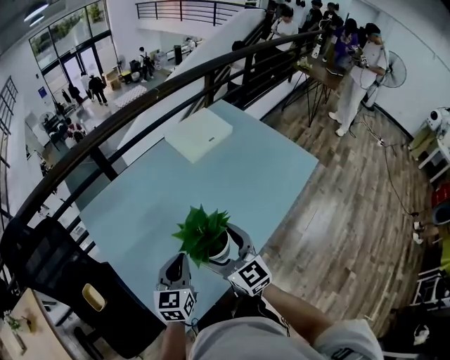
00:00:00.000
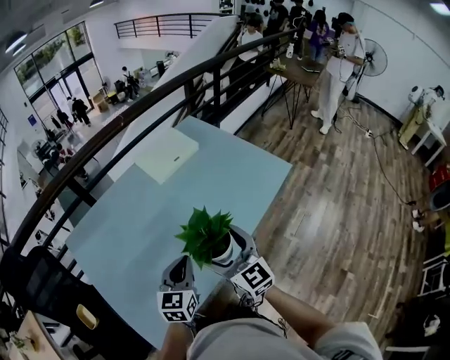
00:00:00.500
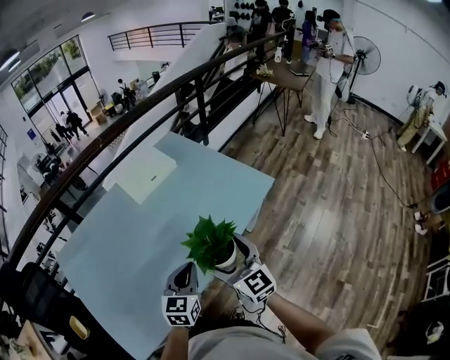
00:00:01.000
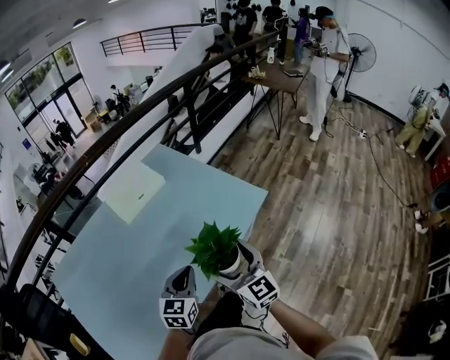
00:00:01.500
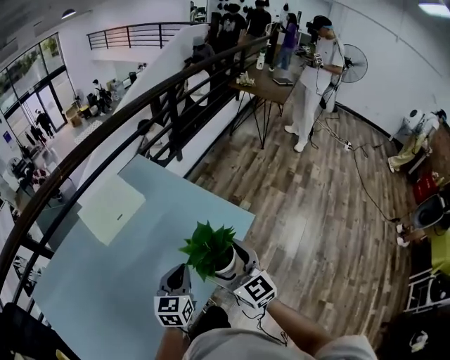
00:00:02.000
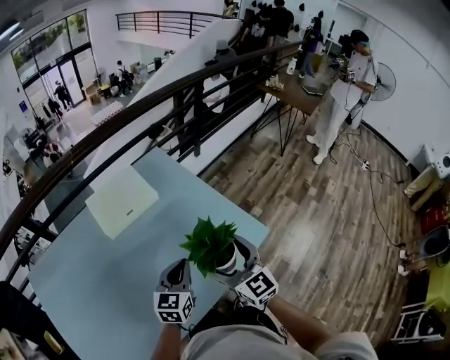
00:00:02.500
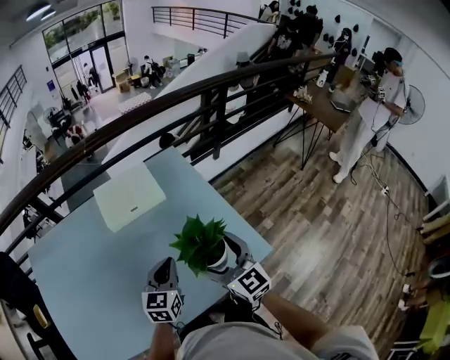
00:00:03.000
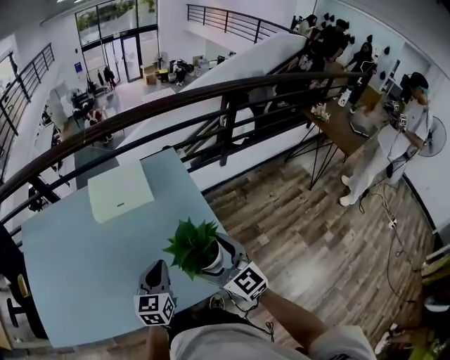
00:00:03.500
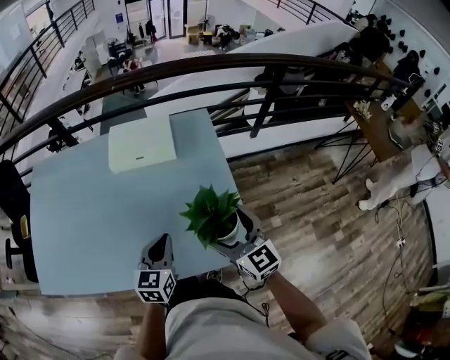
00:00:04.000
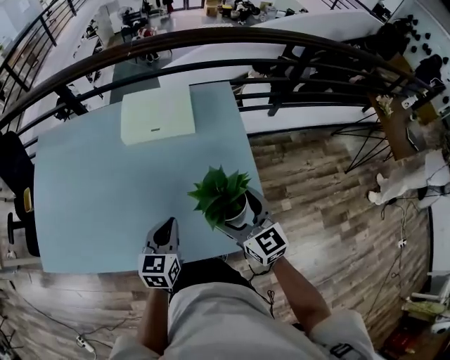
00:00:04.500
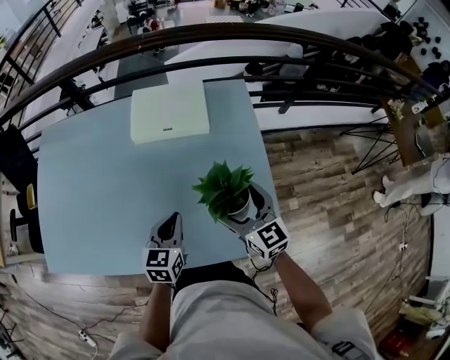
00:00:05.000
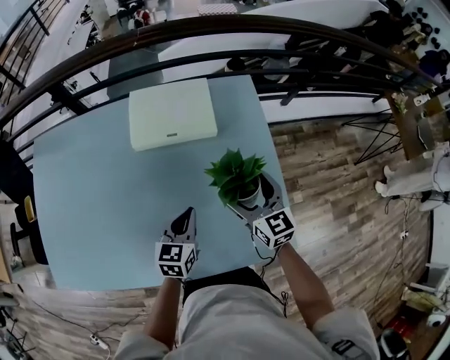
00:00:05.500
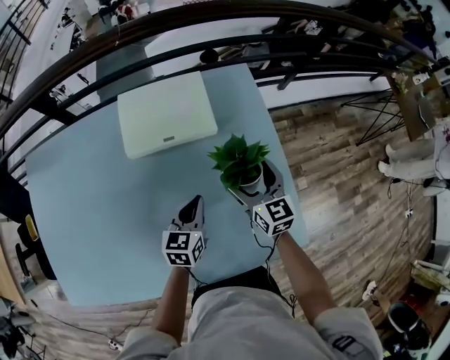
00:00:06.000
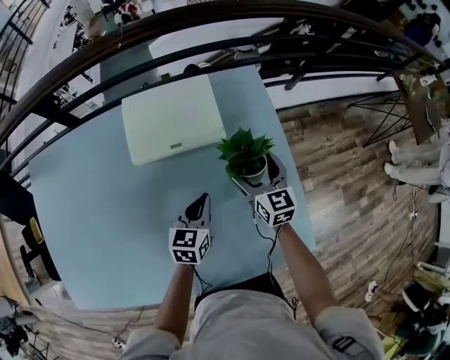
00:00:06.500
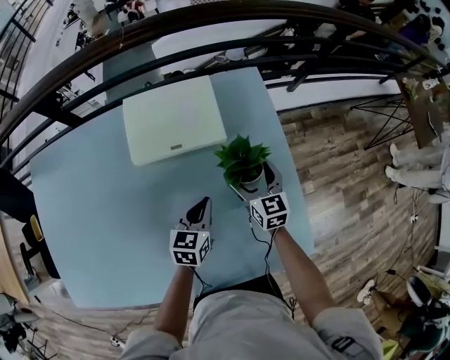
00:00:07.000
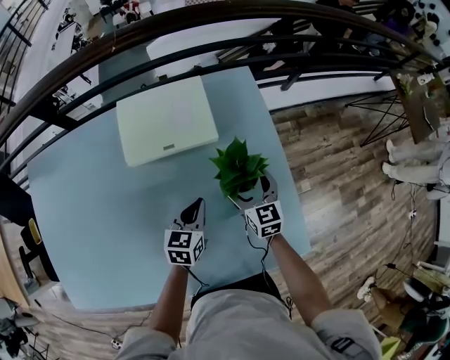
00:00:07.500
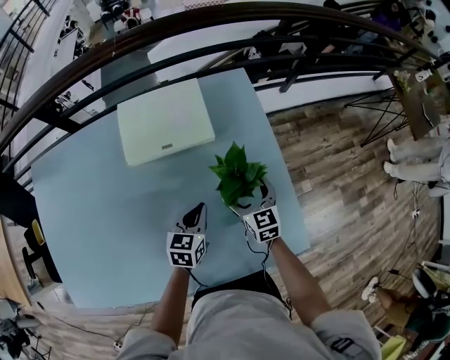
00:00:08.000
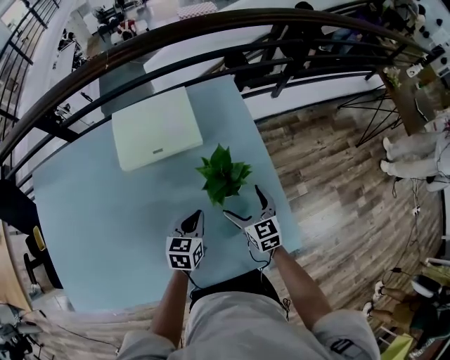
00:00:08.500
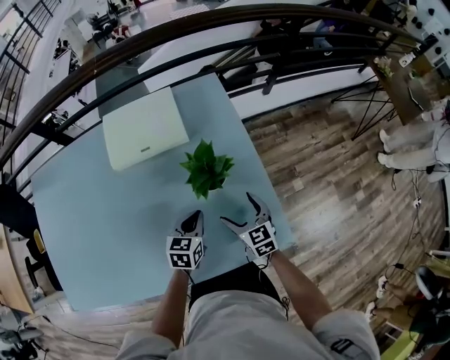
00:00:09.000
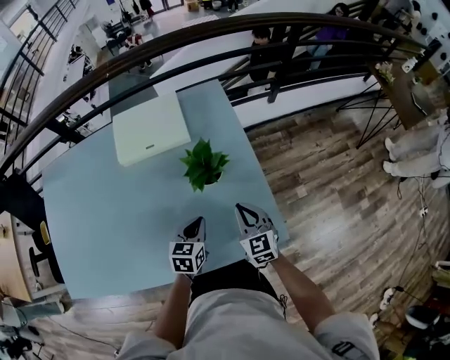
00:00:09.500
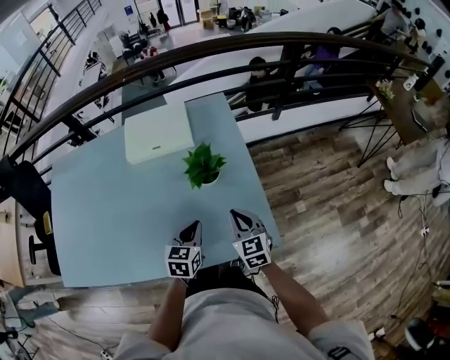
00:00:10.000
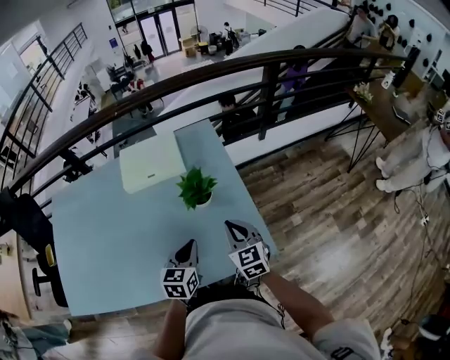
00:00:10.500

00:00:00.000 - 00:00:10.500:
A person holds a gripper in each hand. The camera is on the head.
00:00:00.000 - 00:00:02.000: Both grippers are carried to the right and forward, approximately 50 cm.
00:00:02.000 - 00:00:04.000: The right gripper moves approximately 20 cm, and changes its angle by approximately 40 degrees. Meanwhile the left gripper shifts by about 10 cm, and swivels some 40 degrees.
00:00:04.000 - 00:00:06.500: The two grippers go some 25 cm forward and downward. The right gripper changes its angle by some 20 degrees.
00:00:06.500 - 00:00:08.500: The left gripper goes about 5 cm backward, while the right gripper travels backward and downward by roughly 15 cm.
00:00:08.500 - 00:00:10.500: The two grippers go approximately 15 cm upward, backward and to the right. The right gripper closes up.

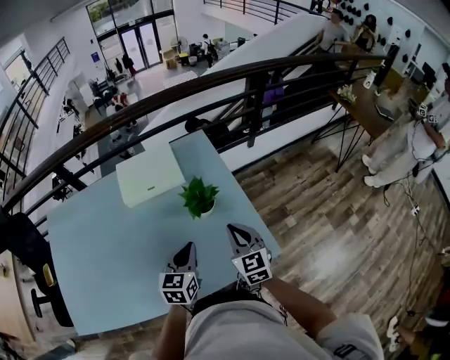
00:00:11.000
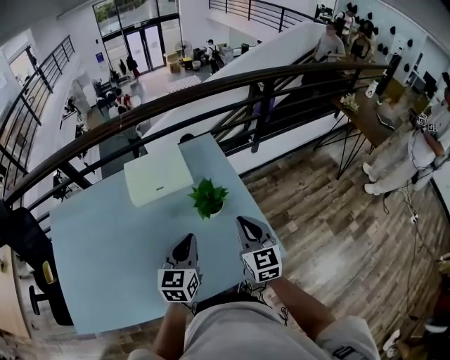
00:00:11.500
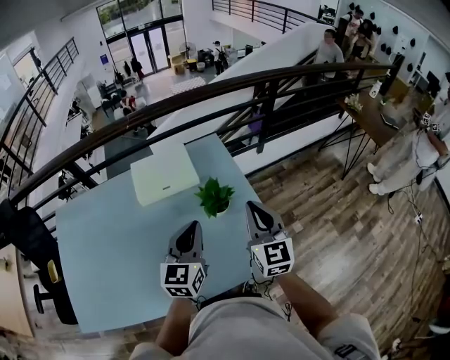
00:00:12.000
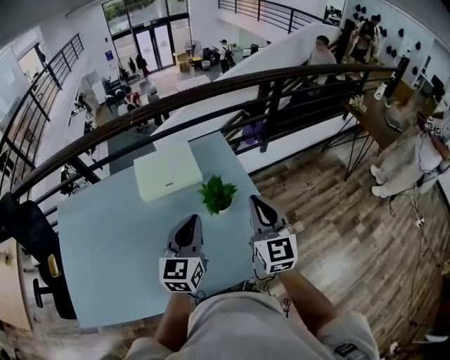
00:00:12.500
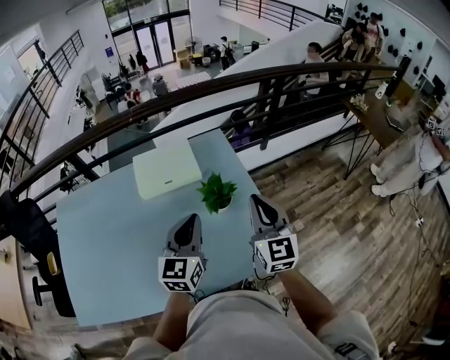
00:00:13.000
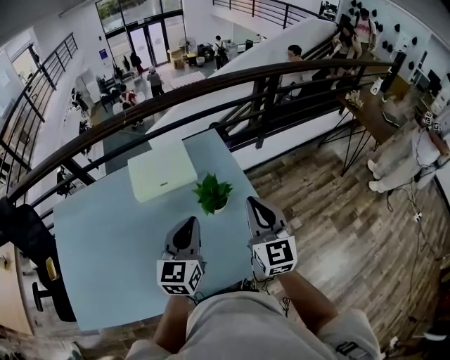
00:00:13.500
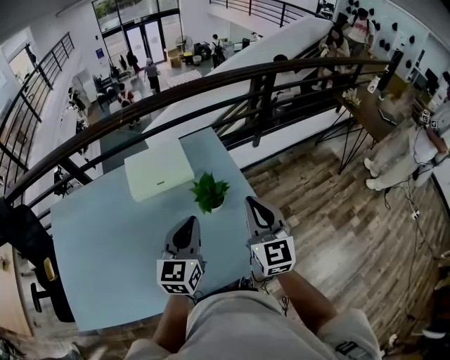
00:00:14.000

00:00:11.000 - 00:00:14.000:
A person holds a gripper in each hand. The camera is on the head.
00:00:11.000 - 00:00:12.500: The two grippers go about 15 cm upward.
00:00:12.500 - 00:00:14.000: There are only small adjustments of the grippers.

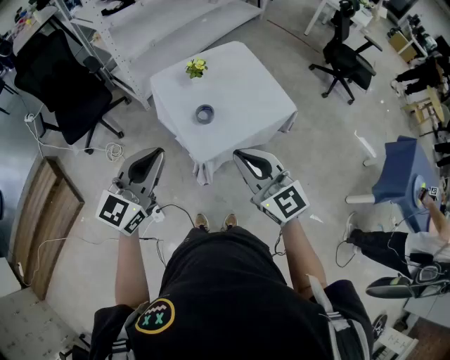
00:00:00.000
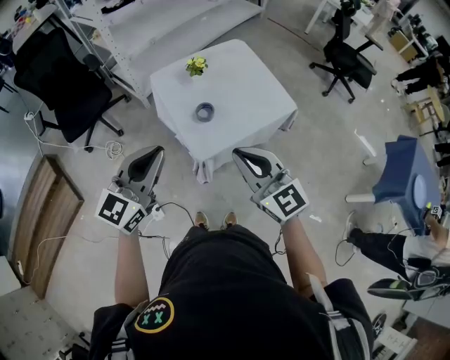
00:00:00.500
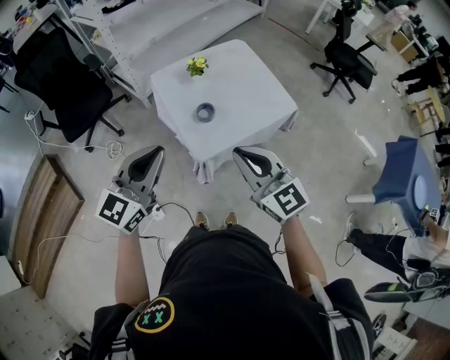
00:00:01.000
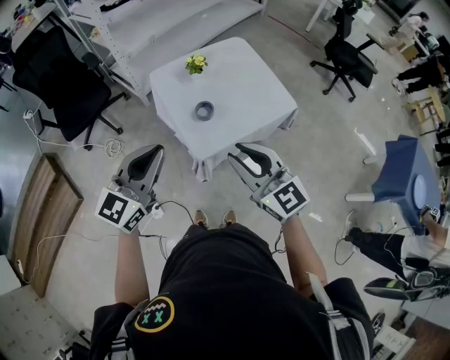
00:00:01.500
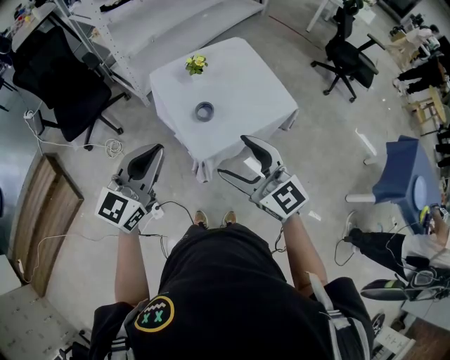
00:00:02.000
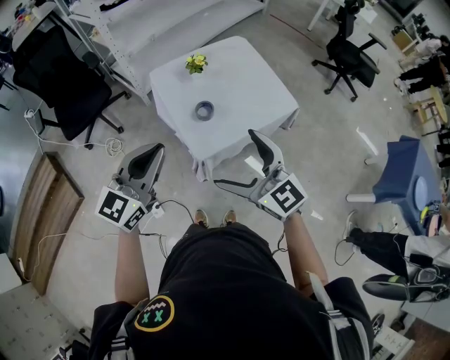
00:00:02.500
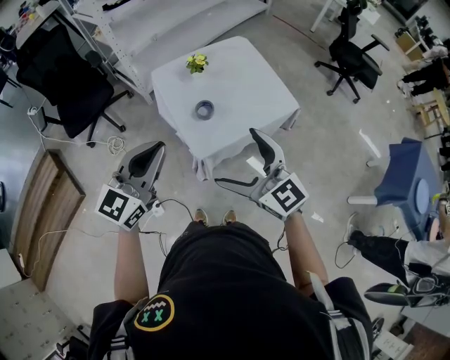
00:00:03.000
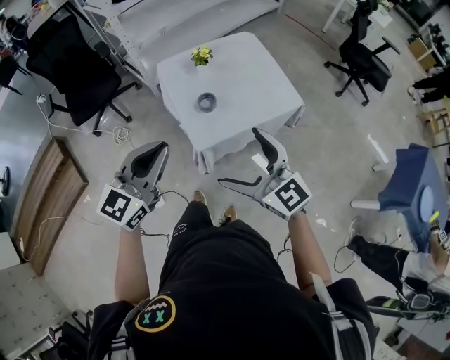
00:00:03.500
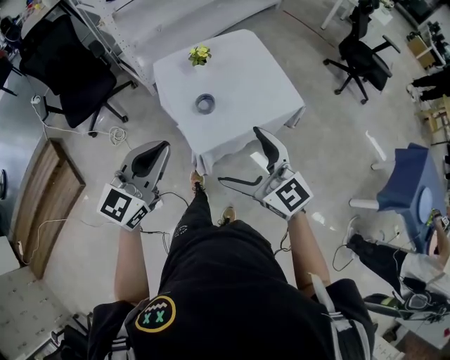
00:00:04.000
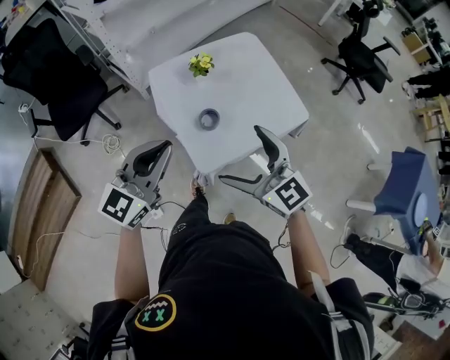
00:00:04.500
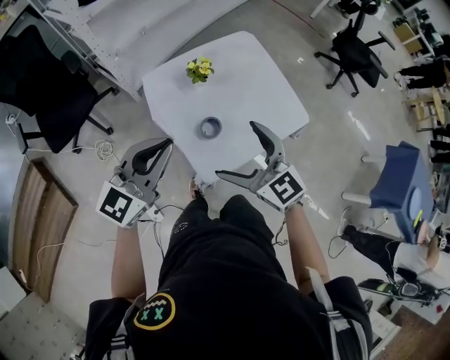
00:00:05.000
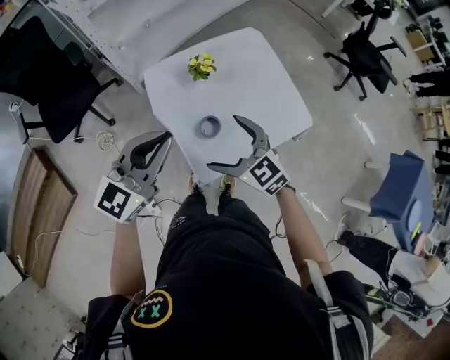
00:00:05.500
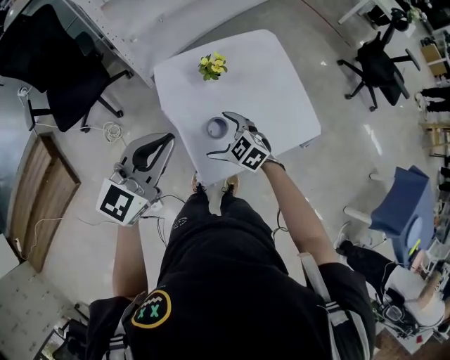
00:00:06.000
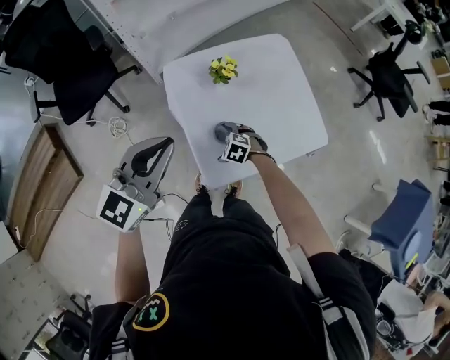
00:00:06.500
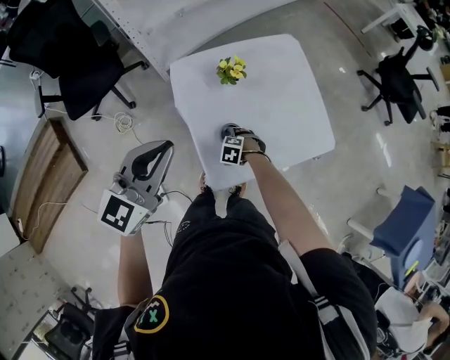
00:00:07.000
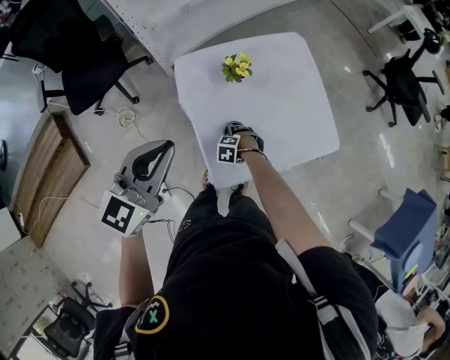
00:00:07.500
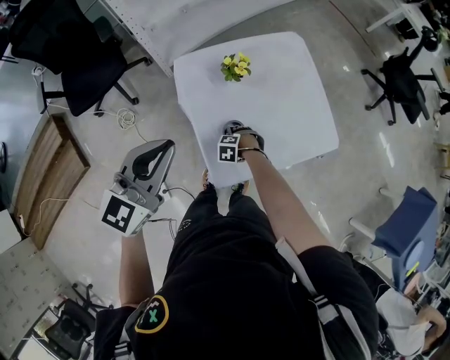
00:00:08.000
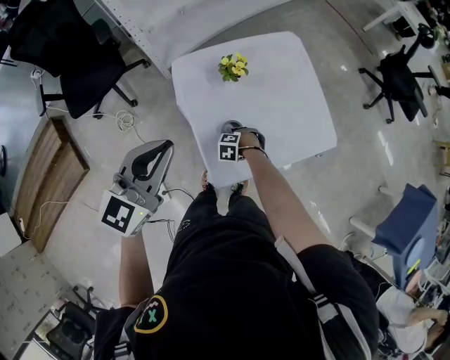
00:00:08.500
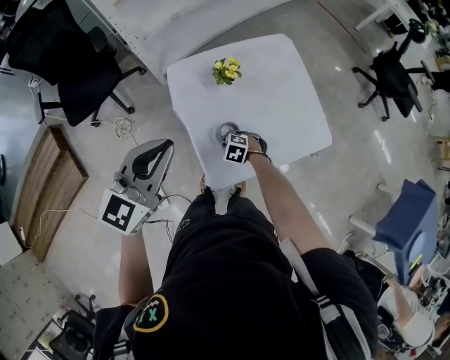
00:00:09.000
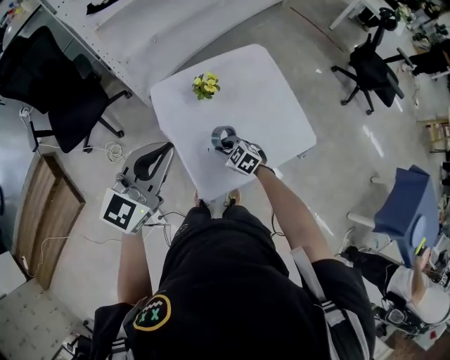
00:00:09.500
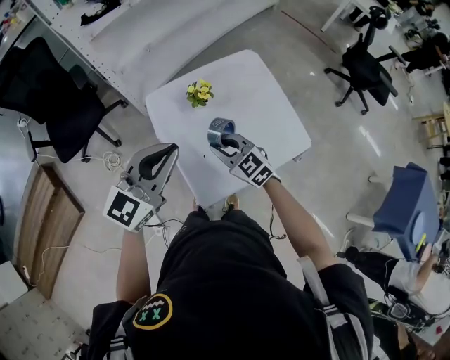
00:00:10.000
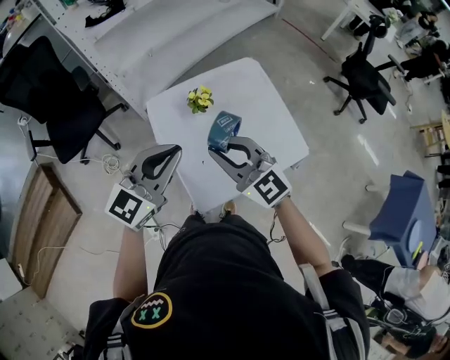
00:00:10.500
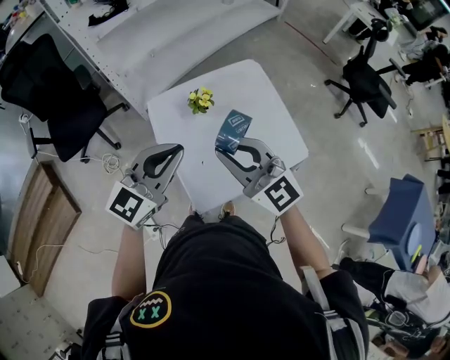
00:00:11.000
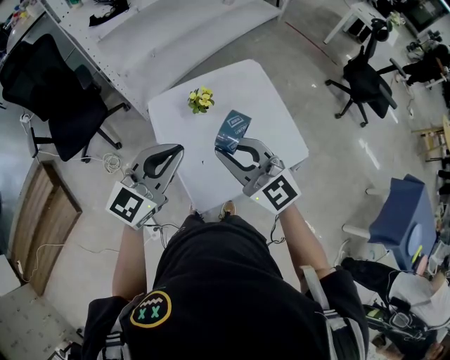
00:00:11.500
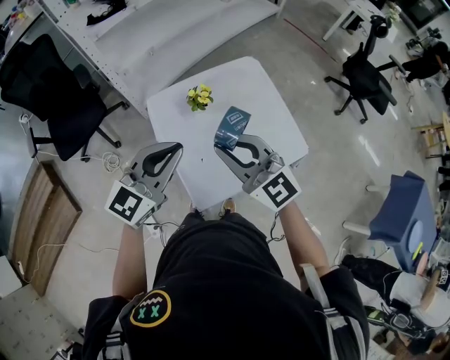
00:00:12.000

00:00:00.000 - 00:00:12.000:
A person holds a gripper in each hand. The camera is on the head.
00:00:00.000 - 00:00:02.000: The right gripper opens.
00:00:02.000 - 00:00:04.000: The right gripper ends up approximately 5 cm from where it was; the left gripper shifts by roughly 5 cm.
00:00:04.000 - 00:00:06.000: The left gripper travels forward by about 25 cm. The right gripper is displaced forward and downward by about 35 cm, and tips its fingers downward by about 40 degrees.
00:00:06.000 - 00:00:08.000: The right gripper travels downward by approximately 25 cm, and points its fingers roughly 40 degrees further downward.
00:00:08.000 - 00:00:10.000: The left gripper moves about 10 cm. Meanwhile the right gripper shifts about 30 cm upward, angles its fingers upward, by about 50 degrees, and closes up.
00:00:10.000 - 00:00:12.000: The right gripper is displaced upward by roughly 20 cm, and changes its angle by about 30 degrees.

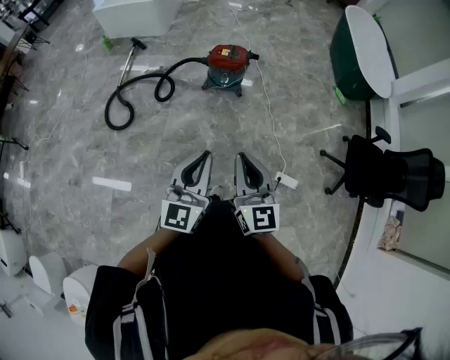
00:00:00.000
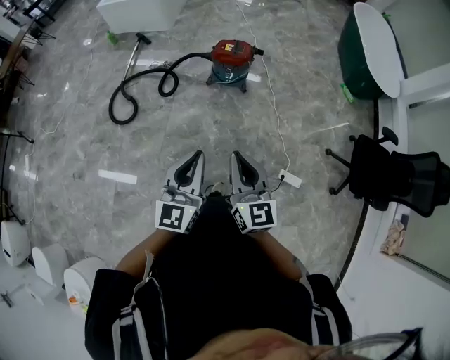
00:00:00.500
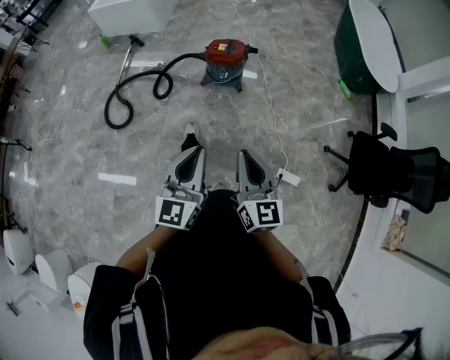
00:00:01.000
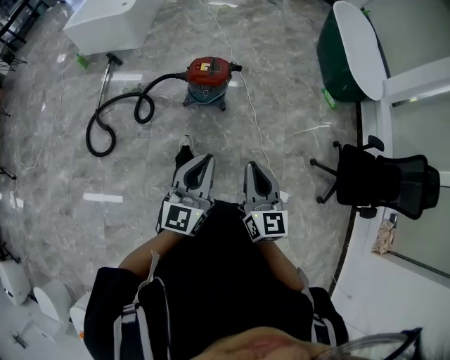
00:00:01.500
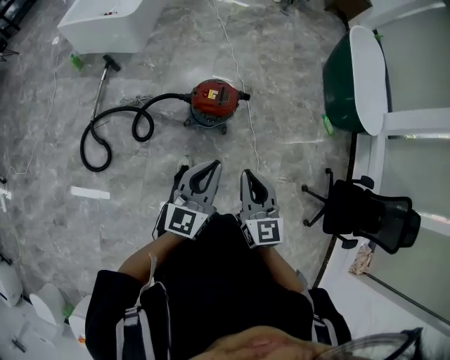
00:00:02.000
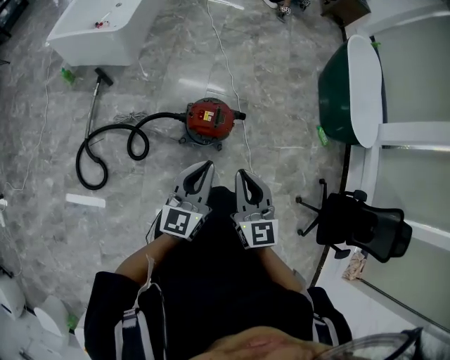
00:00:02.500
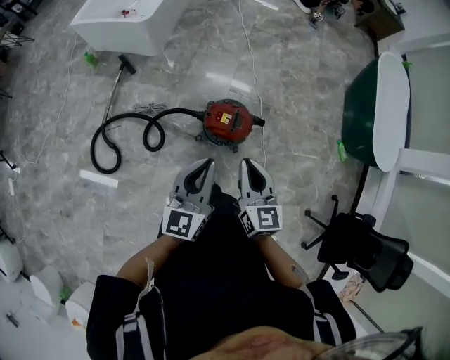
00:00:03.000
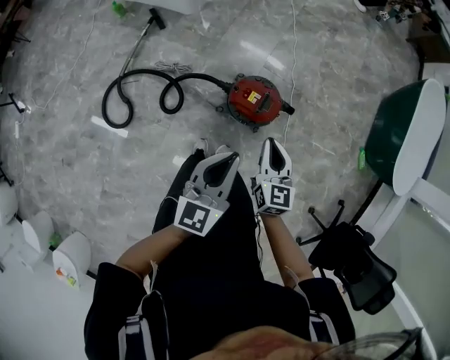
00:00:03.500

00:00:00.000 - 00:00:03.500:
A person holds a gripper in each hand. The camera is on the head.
00:00:00.000 - 00:00:02.000: The two grippers go about 40 cm forward.
00:00:02.000 - 00:00:03.500: The right gripper travels forward and downward by roughly 30 cm; the left gripper goes some 20 cm forward.
